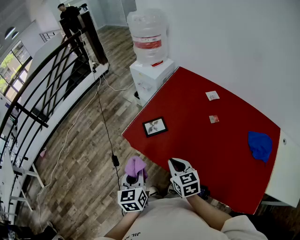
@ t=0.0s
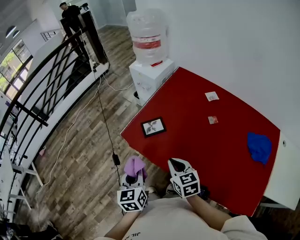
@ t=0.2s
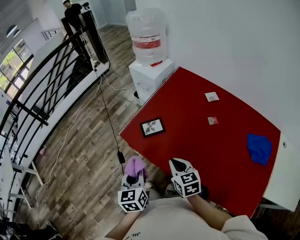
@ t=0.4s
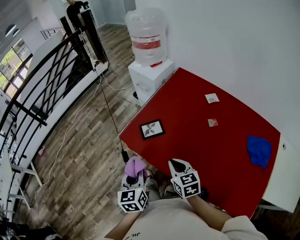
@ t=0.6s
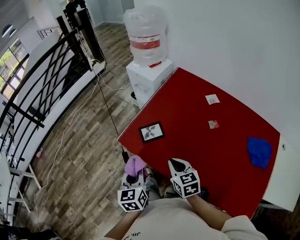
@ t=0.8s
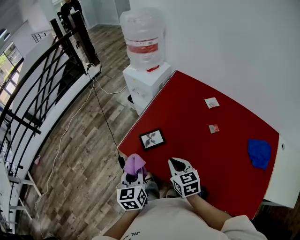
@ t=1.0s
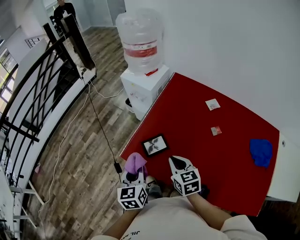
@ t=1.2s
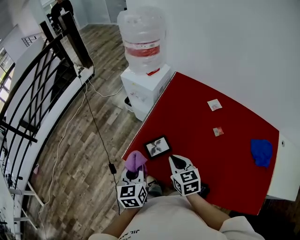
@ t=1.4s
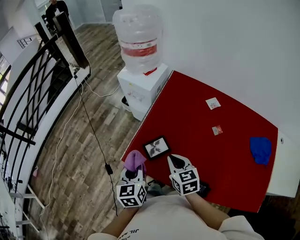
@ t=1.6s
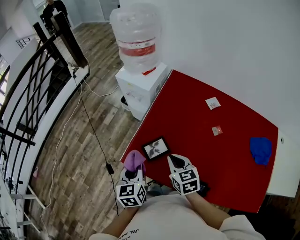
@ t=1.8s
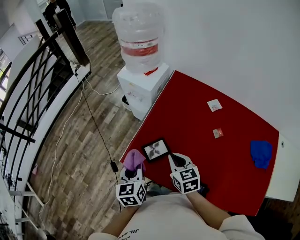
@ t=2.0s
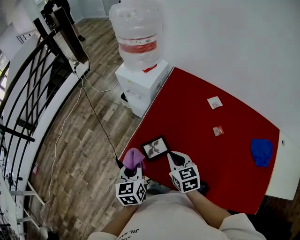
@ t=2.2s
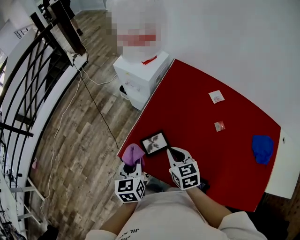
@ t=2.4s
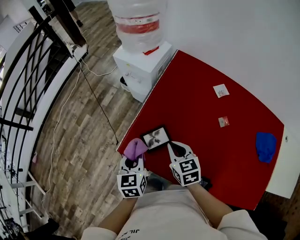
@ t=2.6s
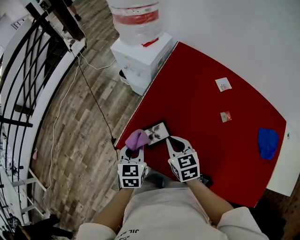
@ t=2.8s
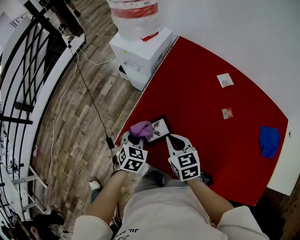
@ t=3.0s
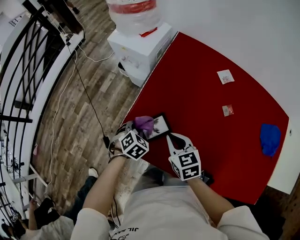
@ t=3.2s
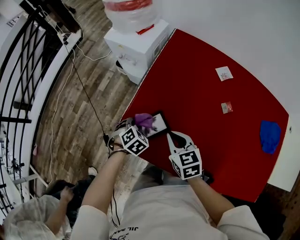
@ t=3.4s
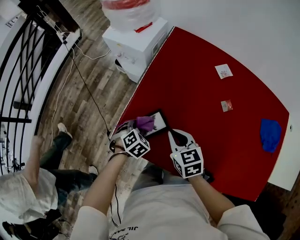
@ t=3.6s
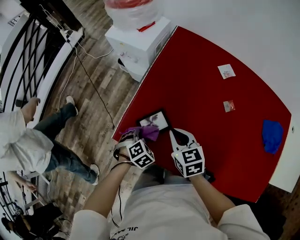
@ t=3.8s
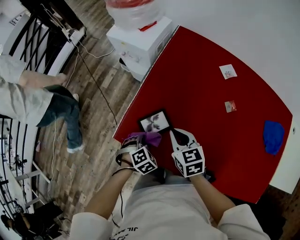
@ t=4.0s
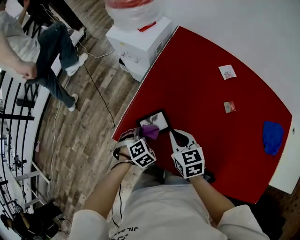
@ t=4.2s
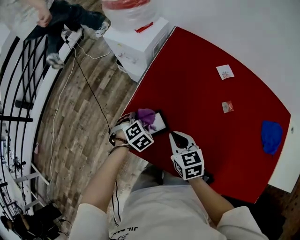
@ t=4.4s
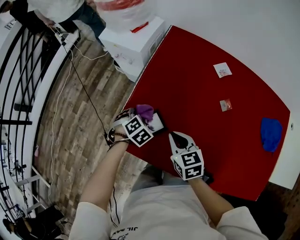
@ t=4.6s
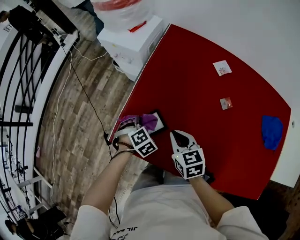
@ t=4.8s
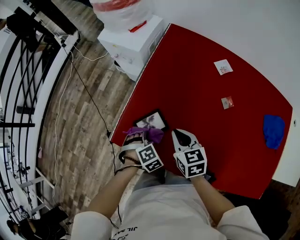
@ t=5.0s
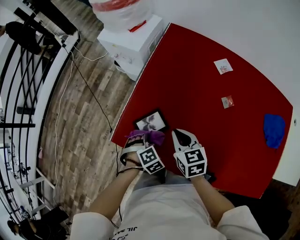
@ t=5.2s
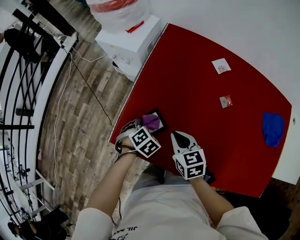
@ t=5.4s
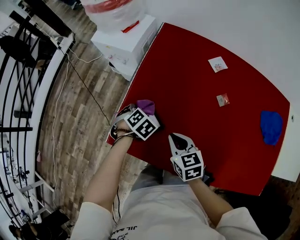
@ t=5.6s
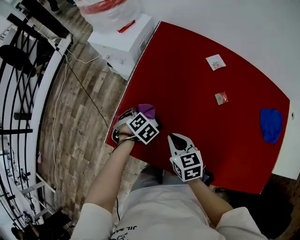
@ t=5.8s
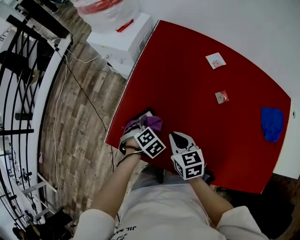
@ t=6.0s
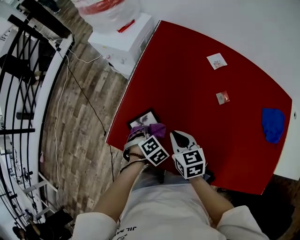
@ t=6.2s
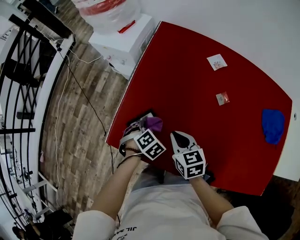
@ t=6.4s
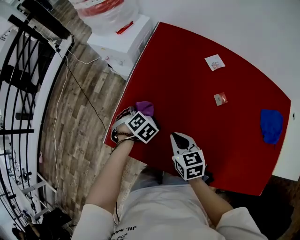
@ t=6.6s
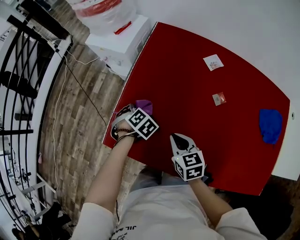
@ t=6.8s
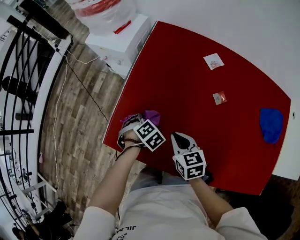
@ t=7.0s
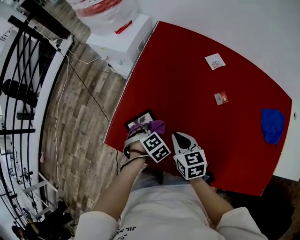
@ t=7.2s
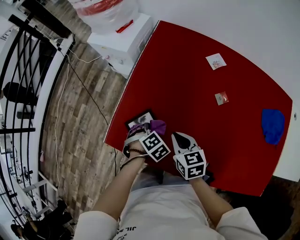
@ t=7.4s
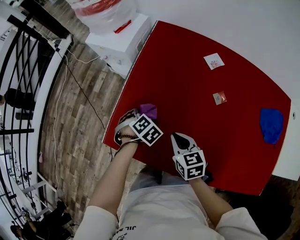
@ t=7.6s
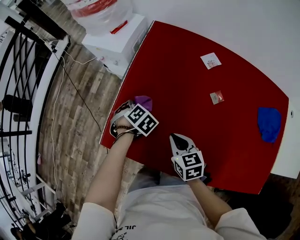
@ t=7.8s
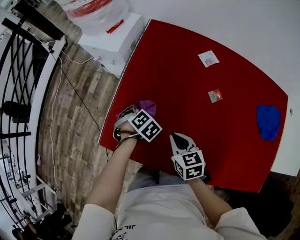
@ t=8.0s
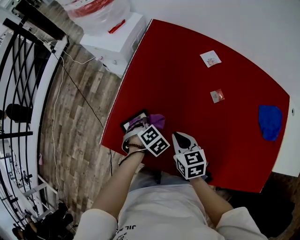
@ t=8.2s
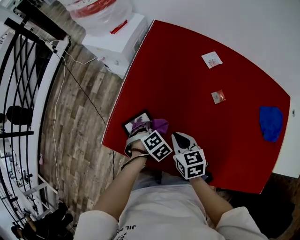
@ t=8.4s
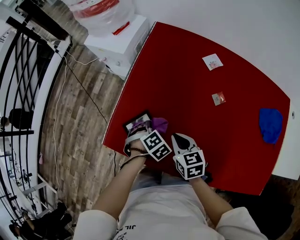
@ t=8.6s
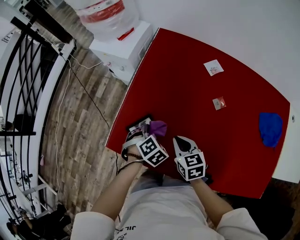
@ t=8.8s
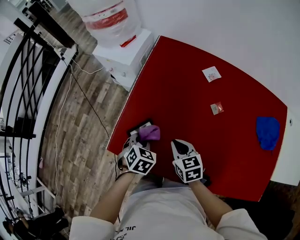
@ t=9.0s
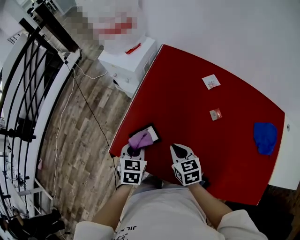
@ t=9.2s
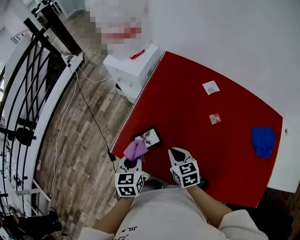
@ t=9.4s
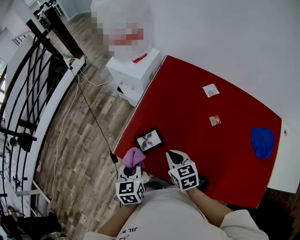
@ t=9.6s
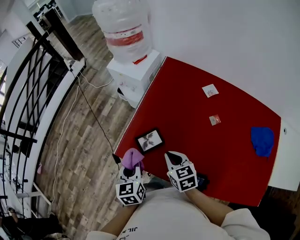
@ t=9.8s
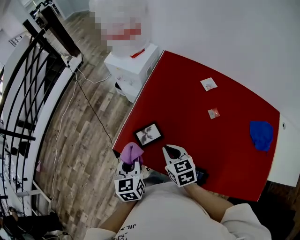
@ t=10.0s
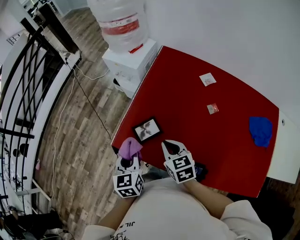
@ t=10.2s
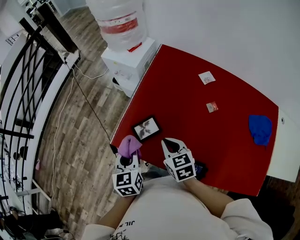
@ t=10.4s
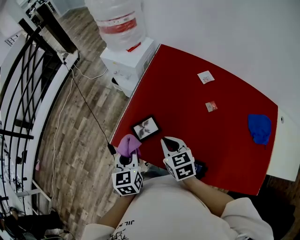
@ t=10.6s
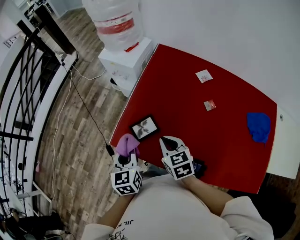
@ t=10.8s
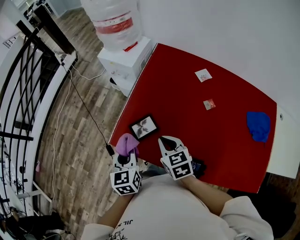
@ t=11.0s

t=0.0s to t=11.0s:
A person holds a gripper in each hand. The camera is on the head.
t=0.0s to t=1.6s: Both grippers travel together forward, roughly 20 cm.
t=1.6s to t=3.2s: The left gripper goes roughly 20 cm downward and forward, and points its fingers some 40 degrees further downward. Meanwhile the right gripper moves downward, roughly 10 cm.
t=3.2s to t=4.8s: The left gripper moves forward and backward over some 15 cm, changing direction 2 times, and changes its angle by roughly 20 degrees.
t=4.8s to t=6.2s: The left gripper ends up some 10 cm from where it was.
t=6.2s to t=7.8s: The left gripper ends up approximately 15 cm from where it was.
t=7.8s to t=9.4s: The left gripper ends up about 20 cm from where it was, and tilts its fingers some 40 degrees upward. Meanwhile the right gripper changes place by approximately 5 cm.
t=9.4s to t=11.0s: The right gripper shifts by roughly 5 cm. The left gripper moves roughly 5 cm.

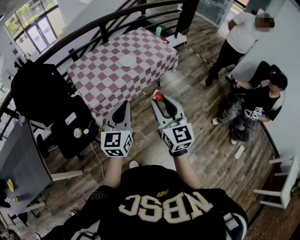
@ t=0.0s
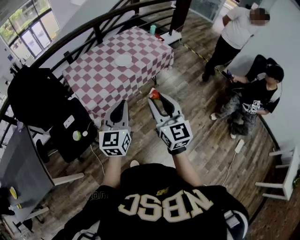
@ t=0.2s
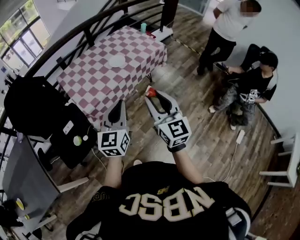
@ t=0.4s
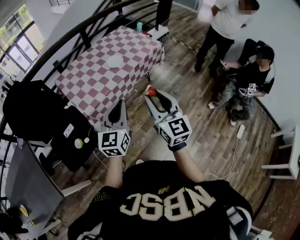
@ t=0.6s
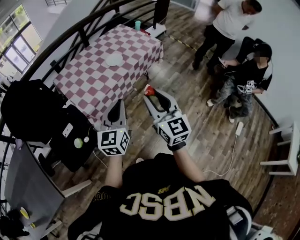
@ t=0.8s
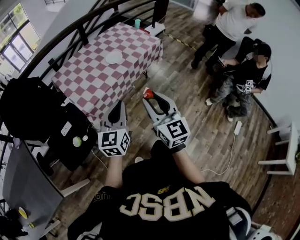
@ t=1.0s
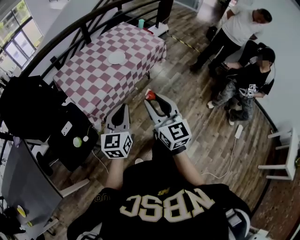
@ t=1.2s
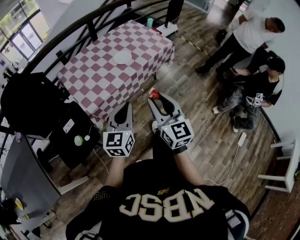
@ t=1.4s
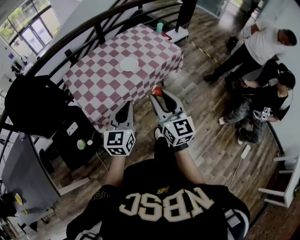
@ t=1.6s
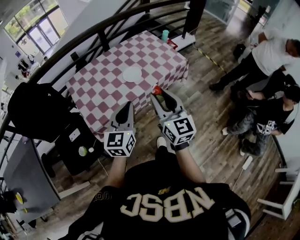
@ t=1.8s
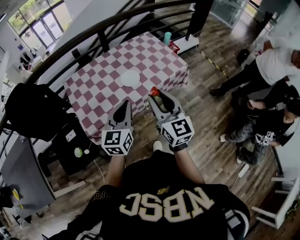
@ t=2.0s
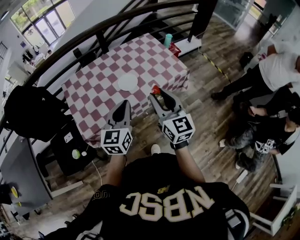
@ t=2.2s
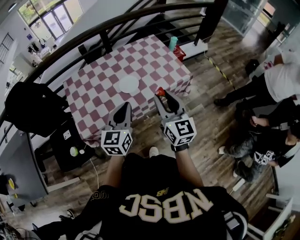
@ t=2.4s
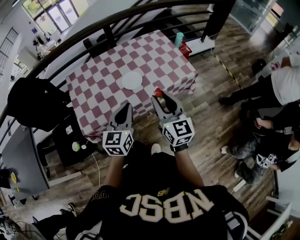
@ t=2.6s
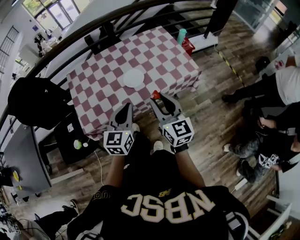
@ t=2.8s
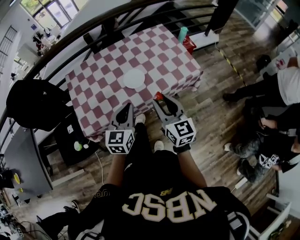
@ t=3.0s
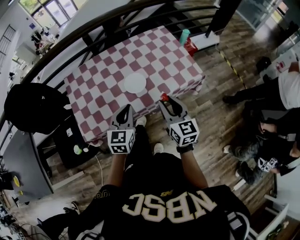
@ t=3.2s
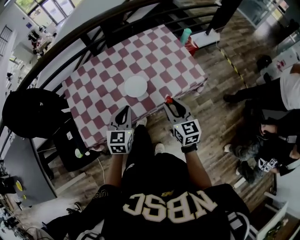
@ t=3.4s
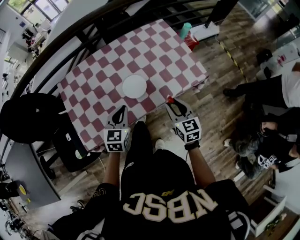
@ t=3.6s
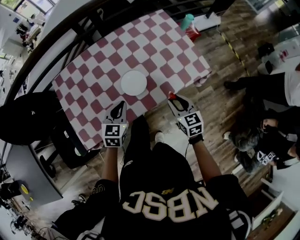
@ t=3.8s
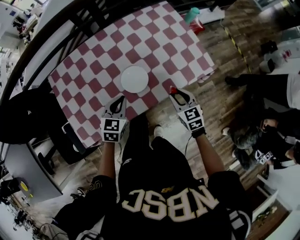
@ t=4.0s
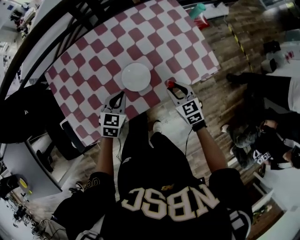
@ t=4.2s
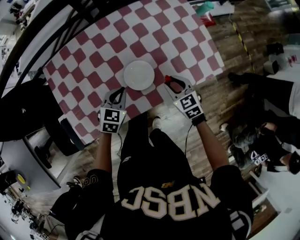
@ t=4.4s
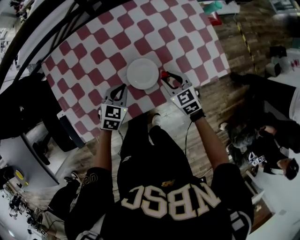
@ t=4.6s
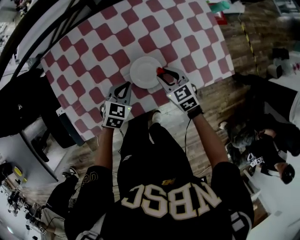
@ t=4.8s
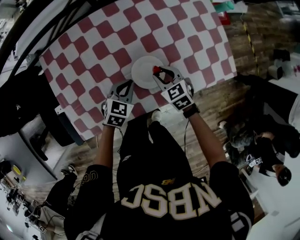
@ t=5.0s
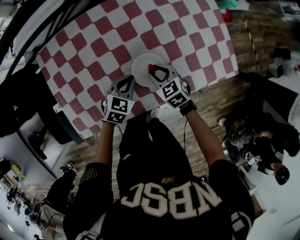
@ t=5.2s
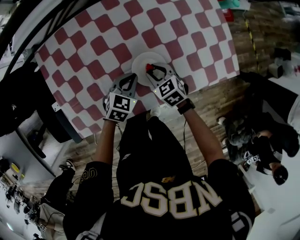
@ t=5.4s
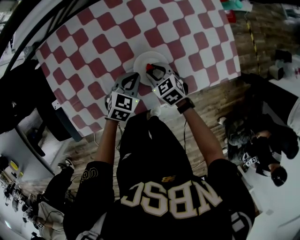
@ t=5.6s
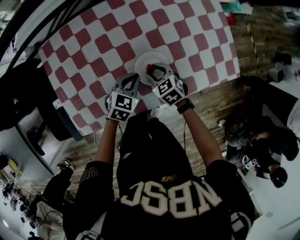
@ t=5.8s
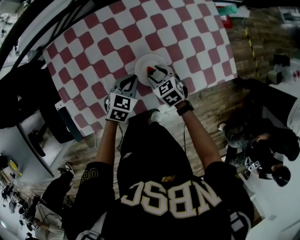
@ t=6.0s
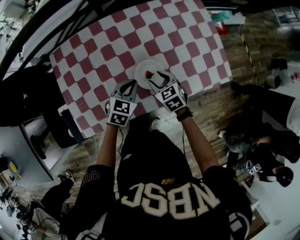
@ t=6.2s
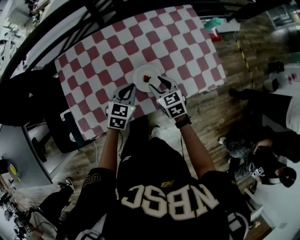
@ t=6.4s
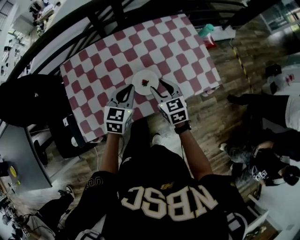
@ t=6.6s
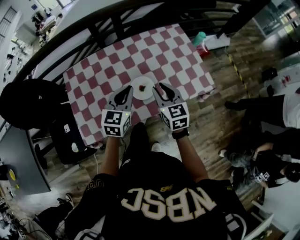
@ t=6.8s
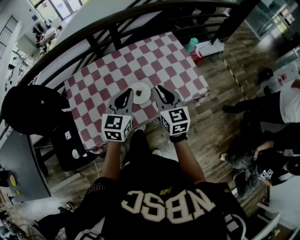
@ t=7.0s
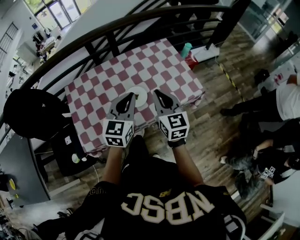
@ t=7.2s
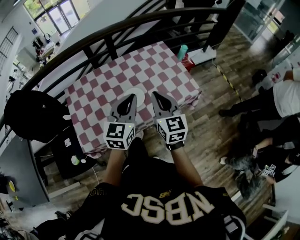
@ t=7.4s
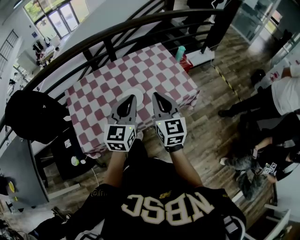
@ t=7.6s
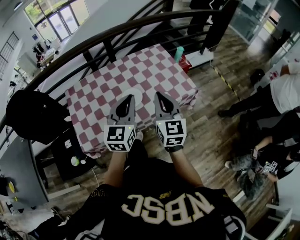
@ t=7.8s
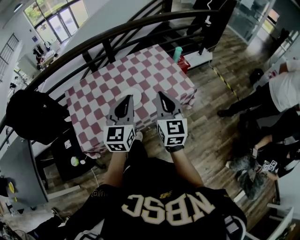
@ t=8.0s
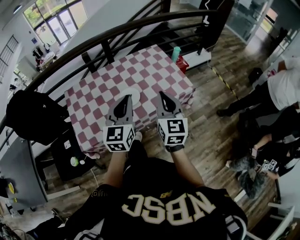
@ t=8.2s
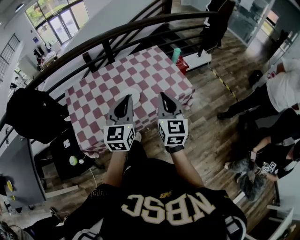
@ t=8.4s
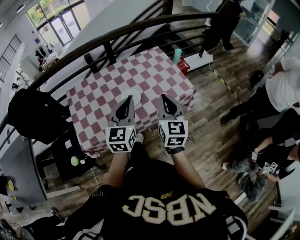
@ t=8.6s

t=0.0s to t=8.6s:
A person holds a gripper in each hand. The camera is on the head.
t=0.0s to t=1.4s: The left gripper shifts some 10 cm downward and forward, while the right gripper travels forward by about 5 cm.
t=1.4s to t=2.8s: The grippers both shift forward and to the right by about 30 cm. The right gripper changes its angle by some 20 degrees.
t=2.8s to t=4.4s: The grippers both shift downward and forward by roughly 35 cm. The right gripper points its fingers roughly 40 degrees further downward. The left gripper points its fingers approximately 30 degrees further downward.
t=4.4s to t=5.8s: The right gripper goes approximately 15 cm to the left and downward. Meanwhile the left gripper moves downward, approximately 5 cm.
t=5.8s to t=7.2s: Both grippers travel together upward, some 35 cm. The left gripper angles its fingers upward, by approximately 30 degrees; the right gripper angles its fingers upward, by roughly 40 degrees, and closes.
t=7.2s to t=8.6s: The left gripper shifts about 10 cm backward; the right gripper moves backward and to the right, roughly 10 cm.

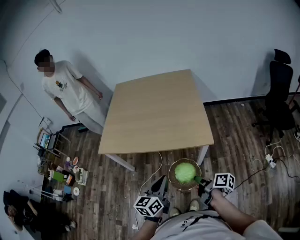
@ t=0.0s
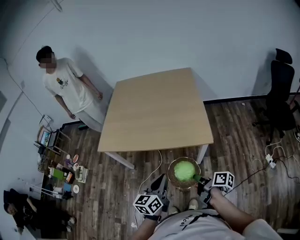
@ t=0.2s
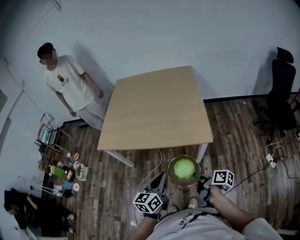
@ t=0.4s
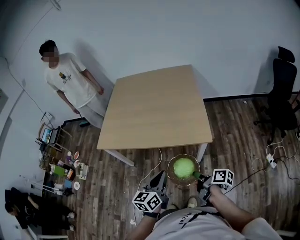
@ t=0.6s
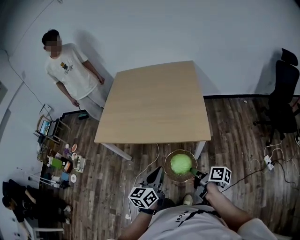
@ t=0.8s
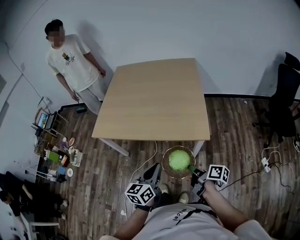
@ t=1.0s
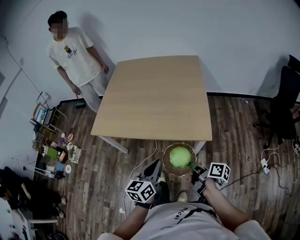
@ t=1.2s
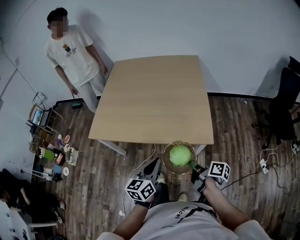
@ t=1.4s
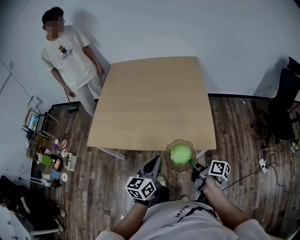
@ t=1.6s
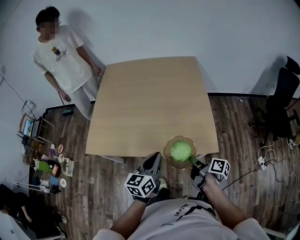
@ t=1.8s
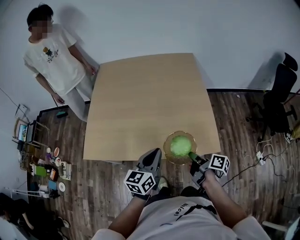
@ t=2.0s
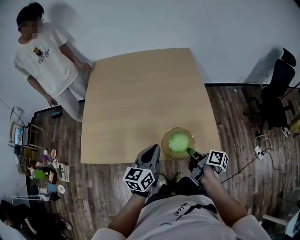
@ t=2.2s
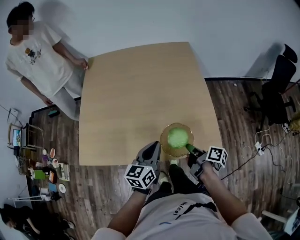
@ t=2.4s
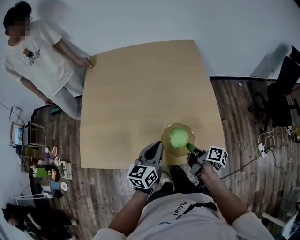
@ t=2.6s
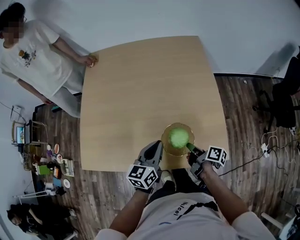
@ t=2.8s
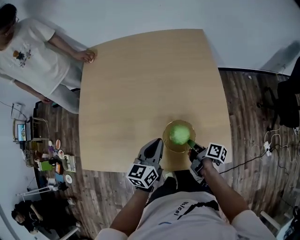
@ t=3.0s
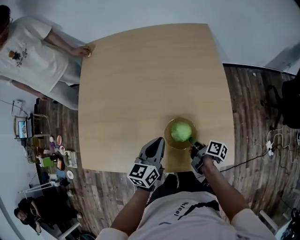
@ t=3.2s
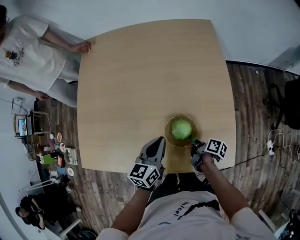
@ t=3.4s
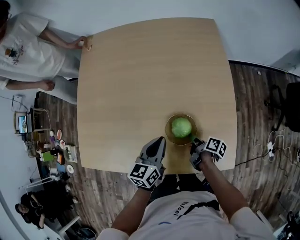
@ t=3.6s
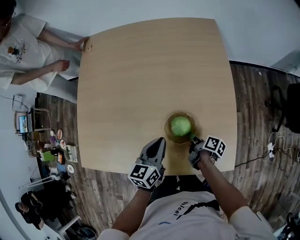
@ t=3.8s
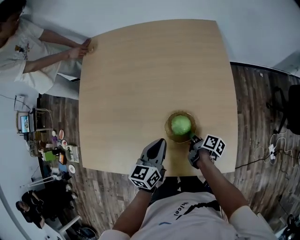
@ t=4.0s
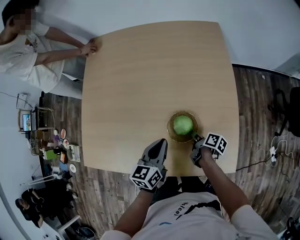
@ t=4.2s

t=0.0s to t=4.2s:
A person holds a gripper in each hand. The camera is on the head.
t=0.0s to t=1.4s: The left gripper ends up some 10 cm from where it was.
t=1.4s to t=2.8s: The left gripper shifts by approximately 35 cm.
t=2.8s to t=4.2s: The left gripper shifts by approximately 10 cm.
